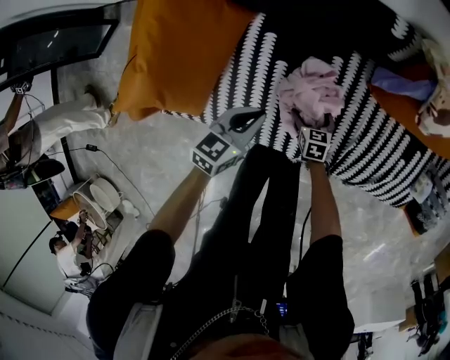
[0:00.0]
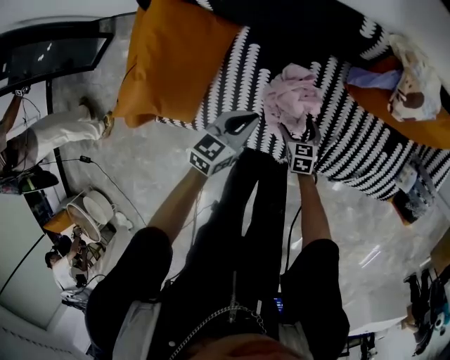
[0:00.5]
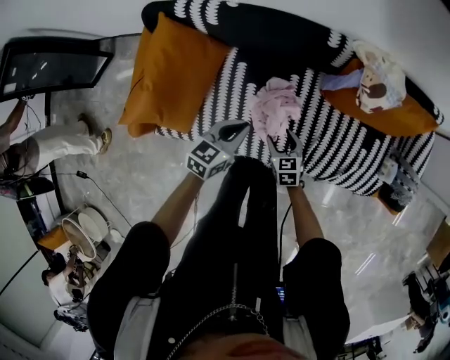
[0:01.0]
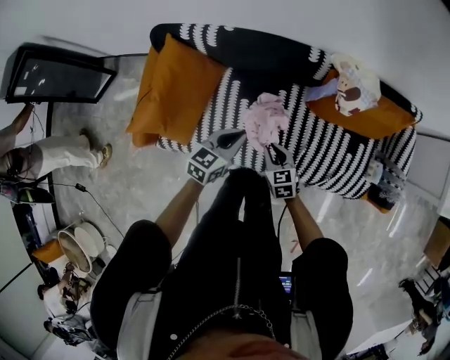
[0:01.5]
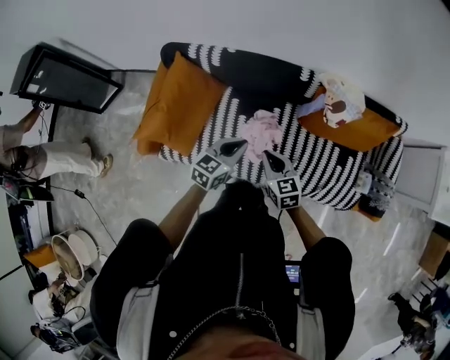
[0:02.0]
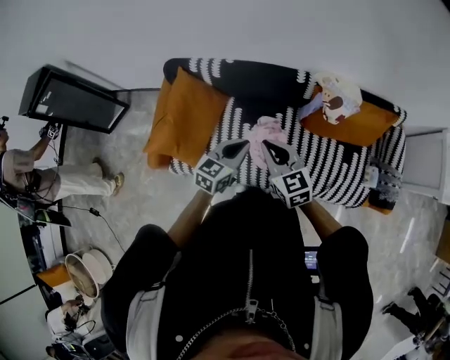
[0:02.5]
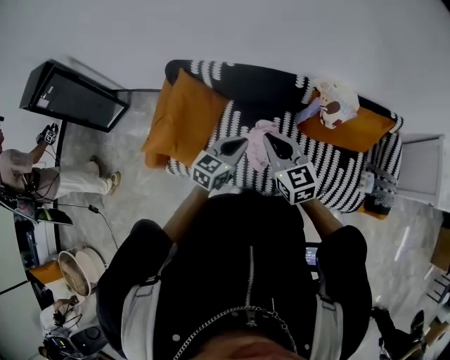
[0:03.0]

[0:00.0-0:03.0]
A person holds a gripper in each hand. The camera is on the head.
0:00.0 to 0:01.5: The left gripper shifts roughly 20 cm upward. Meanwhile the right gripper moves upward, about 30 cm, and closes up.
0:01.5 to 0:03.0: The left gripper heads upward, covering approximately 10 cm, while the right gripper heads upward, covering approximately 30 cm, and swivels approximately 30 degrees.

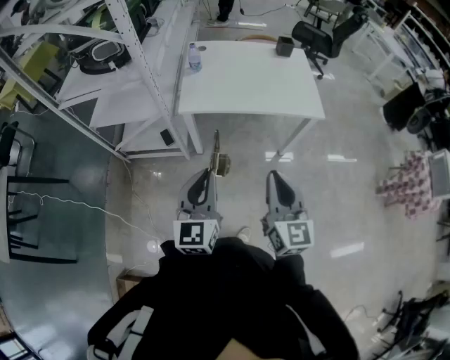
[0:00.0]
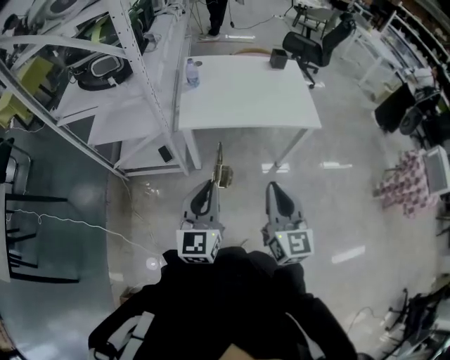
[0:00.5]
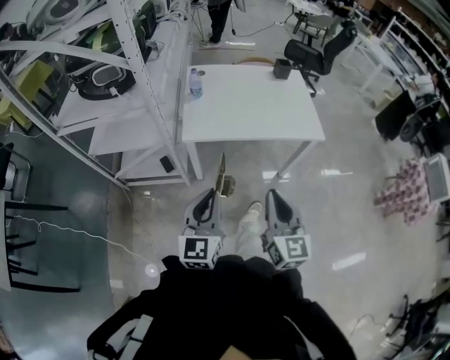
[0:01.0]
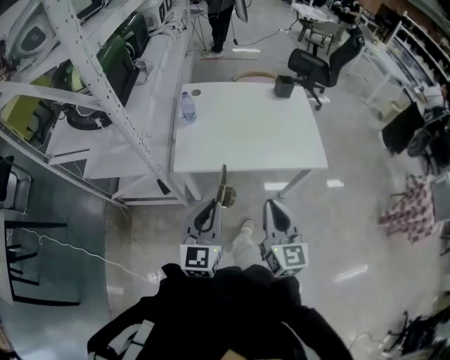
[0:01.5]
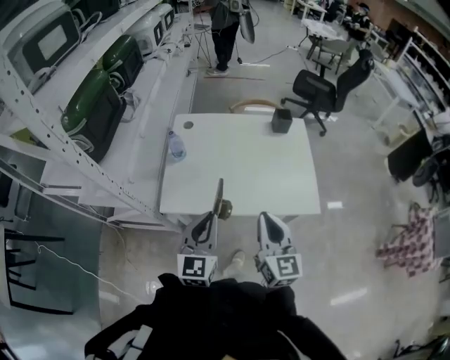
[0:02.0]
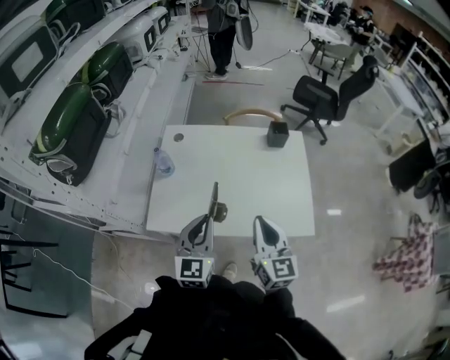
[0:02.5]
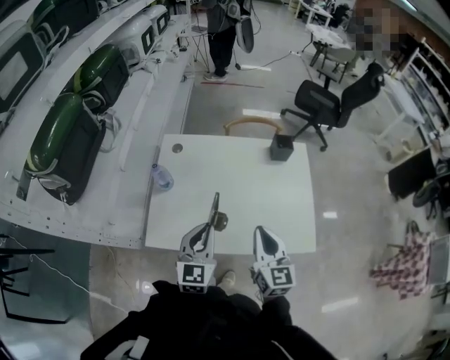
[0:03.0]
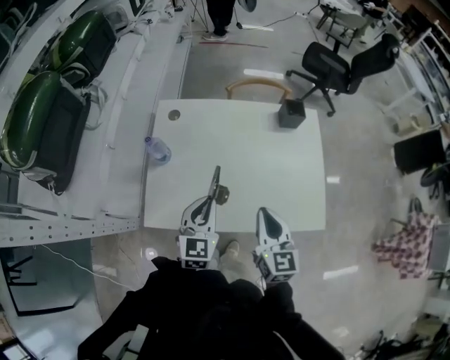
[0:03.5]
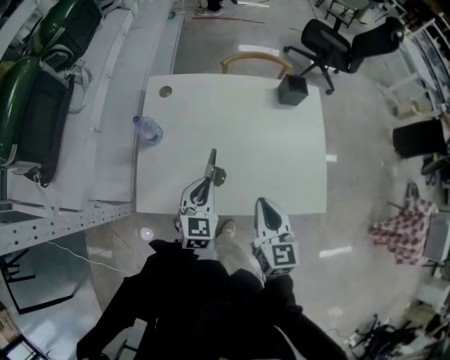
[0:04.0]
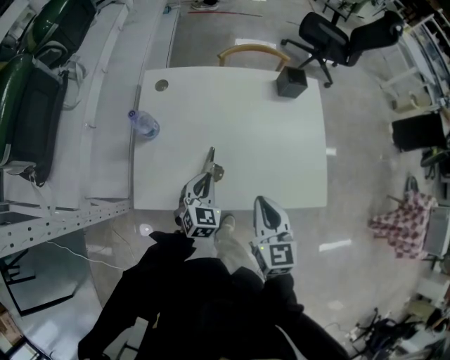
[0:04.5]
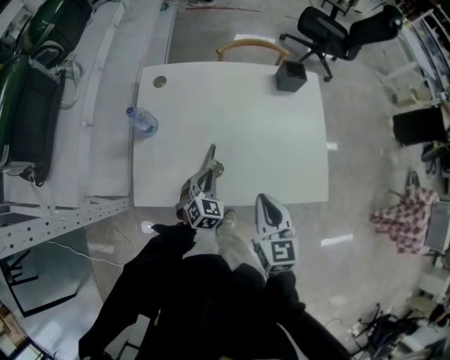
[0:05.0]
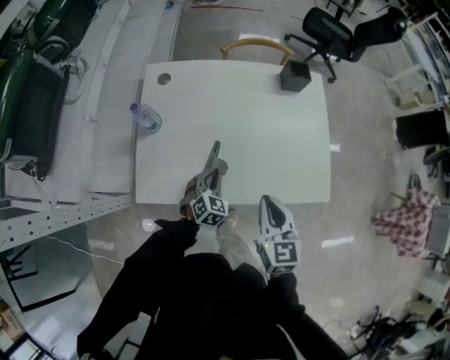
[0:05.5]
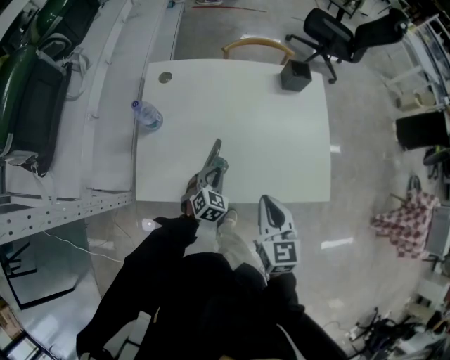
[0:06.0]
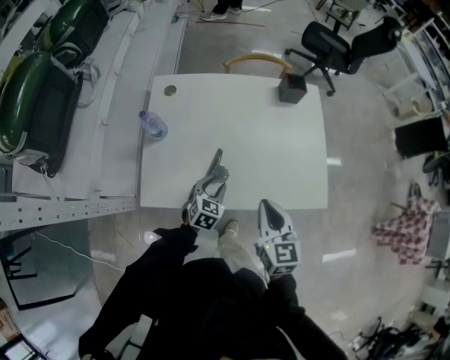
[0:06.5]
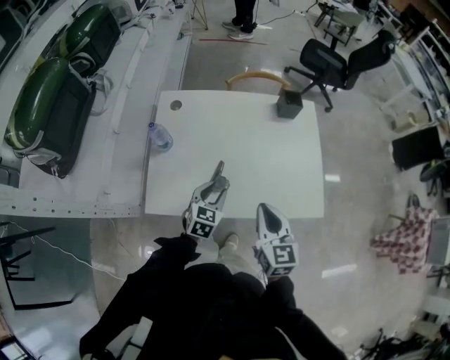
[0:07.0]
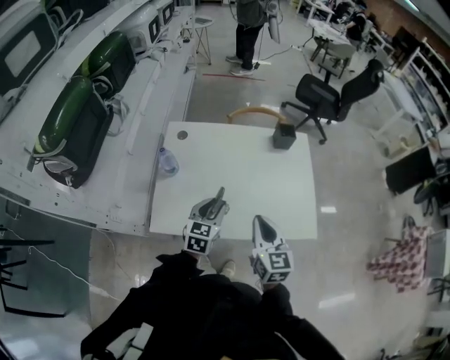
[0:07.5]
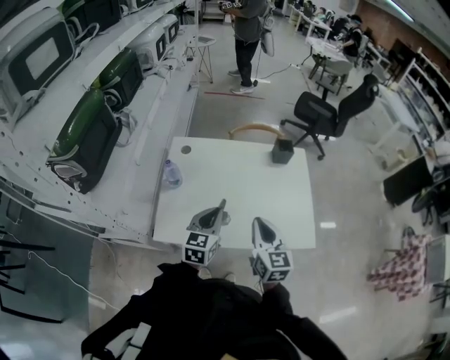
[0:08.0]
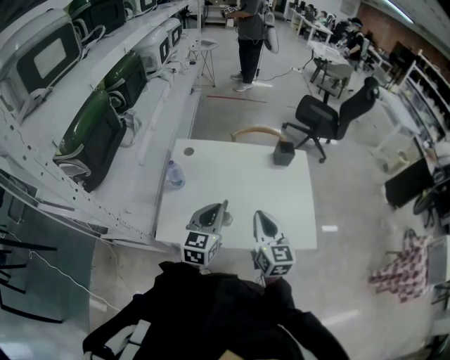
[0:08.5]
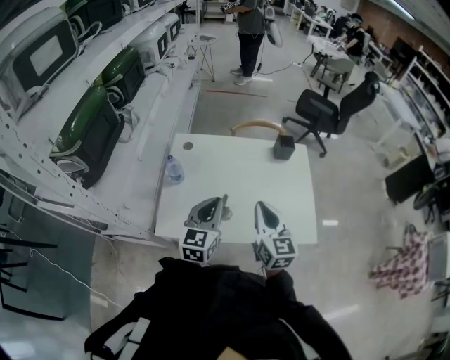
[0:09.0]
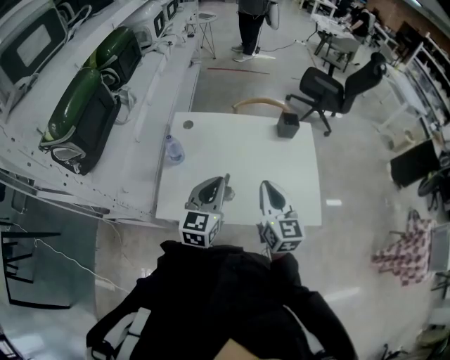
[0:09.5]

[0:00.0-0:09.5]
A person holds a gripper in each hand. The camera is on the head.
0:00.0 to 0:02.0: The two grippers go about 35 cm forward.
0:02.0 to 0:04.0: The grippers both shift forward and downward by roughly 25 cm. The left gripper changes its angle by about 20 degrees.
0:04.0 to 0:05.5: The left gripper travels downward by some 15 cm, and swivels some 20 degrees.
0:05.5 to 0:07.5: The right gripper shifts approximately 10 cm upward, while the left gripper travels upward by roughly 20 cm, swivels approximately 30 degrees, and opens up.
0:07.5 to 0:09.5: The right gripper travels upward by about 5 cm; the left gripper is displaced upward by about 15 cm, and closes.

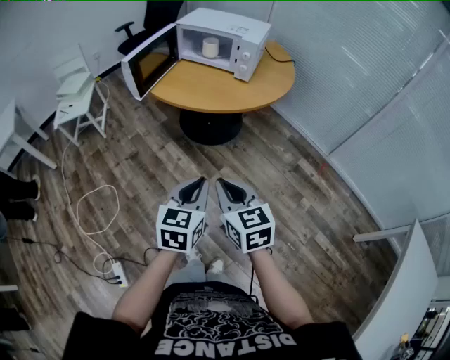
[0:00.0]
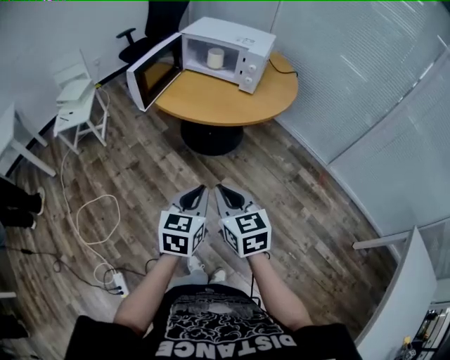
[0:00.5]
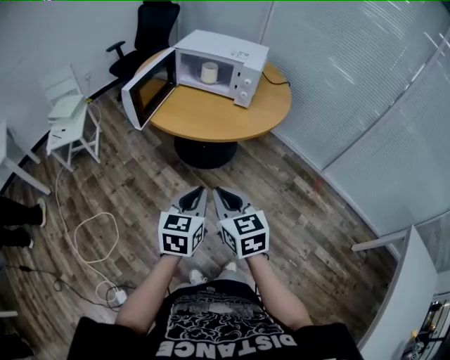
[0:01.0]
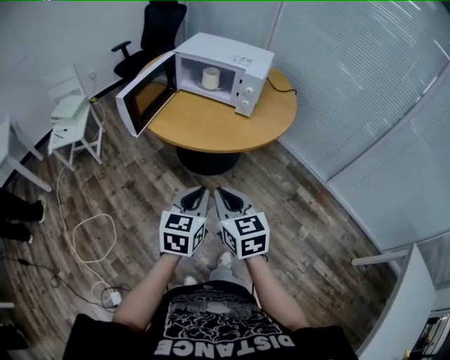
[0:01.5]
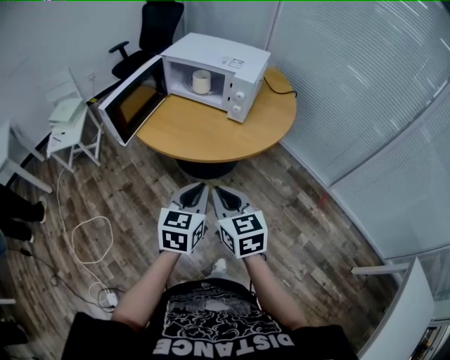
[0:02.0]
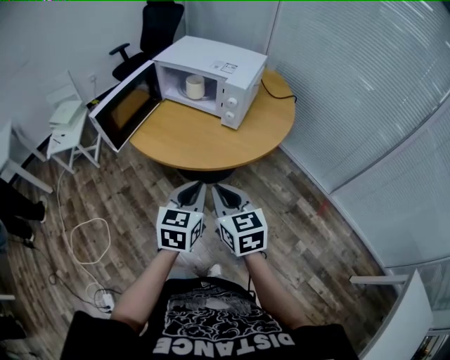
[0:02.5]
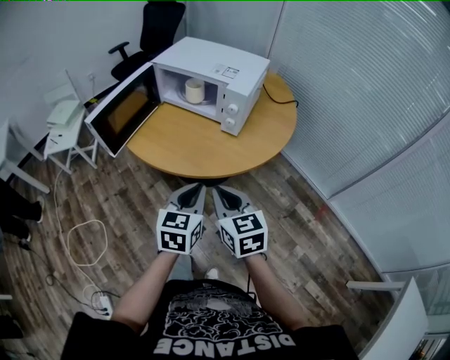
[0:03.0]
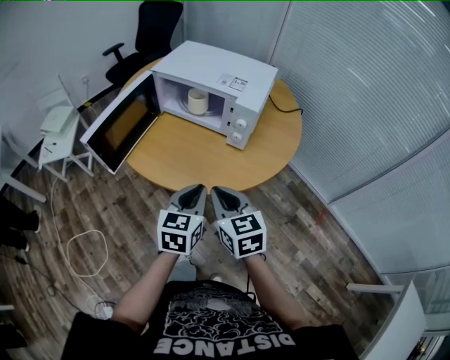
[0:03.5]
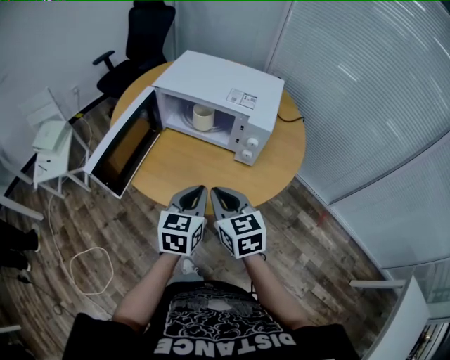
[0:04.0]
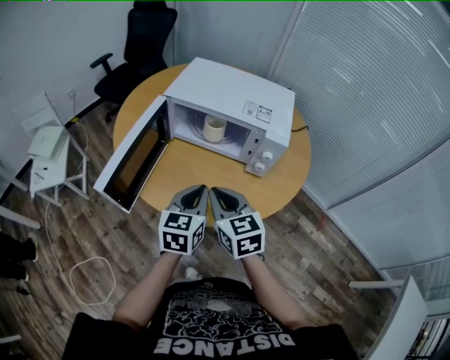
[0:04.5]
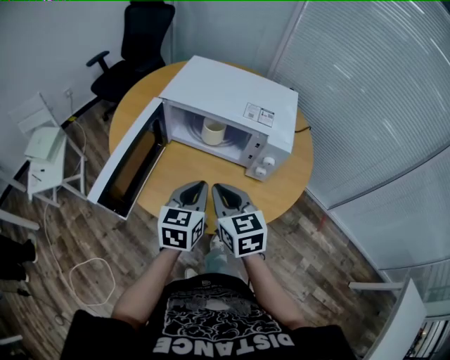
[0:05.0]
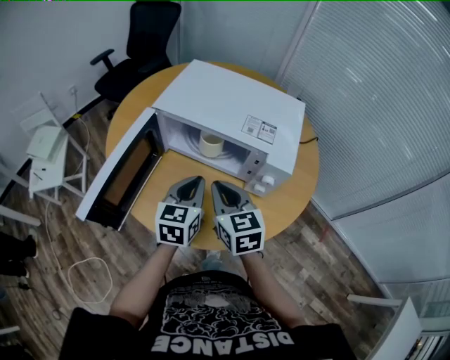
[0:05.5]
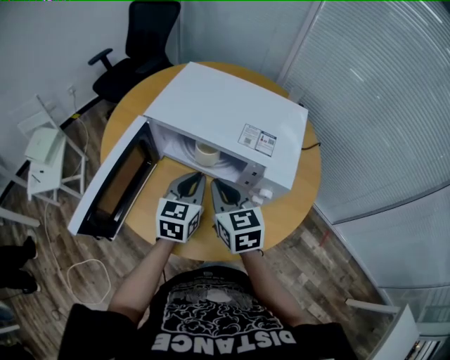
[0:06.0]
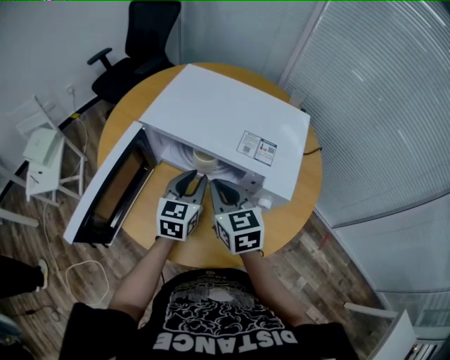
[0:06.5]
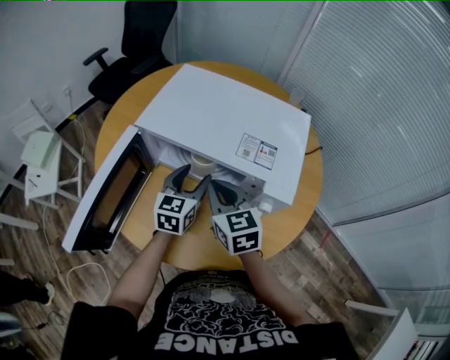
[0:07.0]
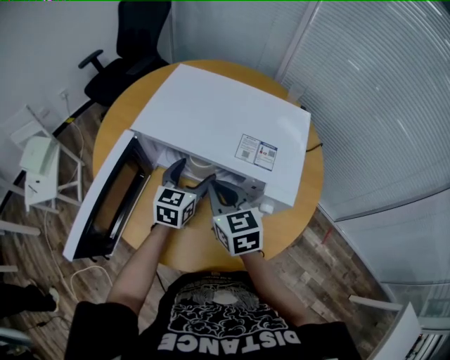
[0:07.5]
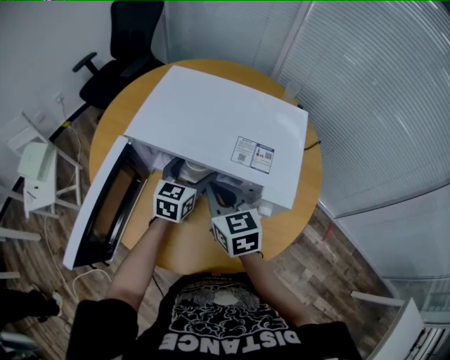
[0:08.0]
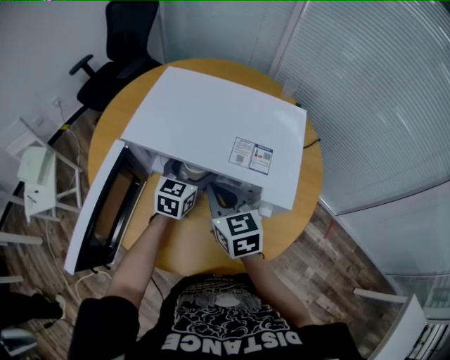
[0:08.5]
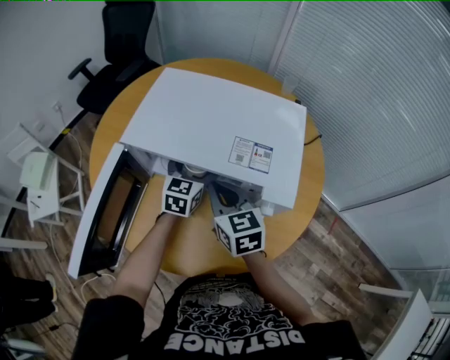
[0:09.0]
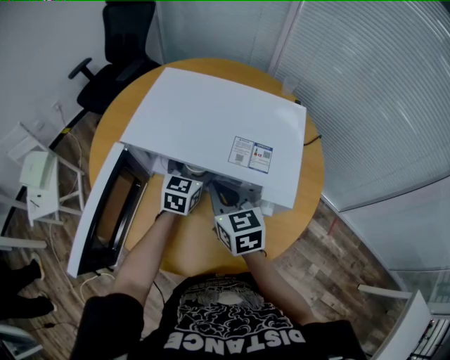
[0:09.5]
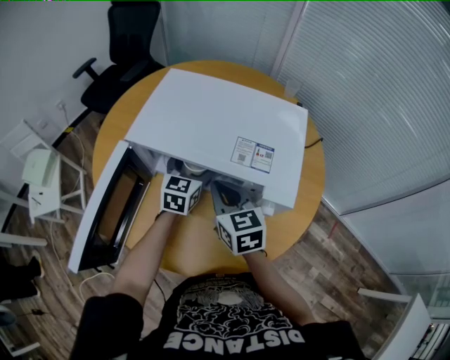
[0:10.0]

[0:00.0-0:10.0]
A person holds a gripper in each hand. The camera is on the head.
0:00.0 to 0:02.0: The grippers both shift forward by roughly 20 cm.
0:02.0 to 0:04.0: Both grippers move forward, some 25 cm.
0:04.0 to 0:06.0: The grippers both shift forward by about 20 cm.
0:06.0 to 0:08.0: The left gripper goes some 10 cm forward, and opens its fingers, while the right gripper travels forward by some 5 cm.
0:08.0 to 0:10.0: The grippers stay close to where they were, moving slightly.

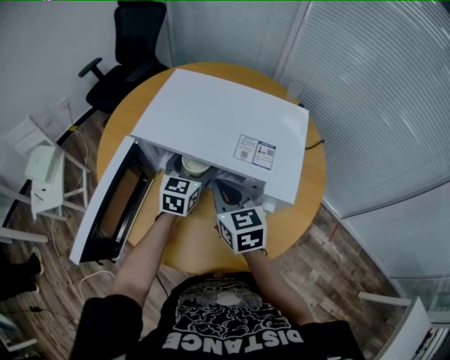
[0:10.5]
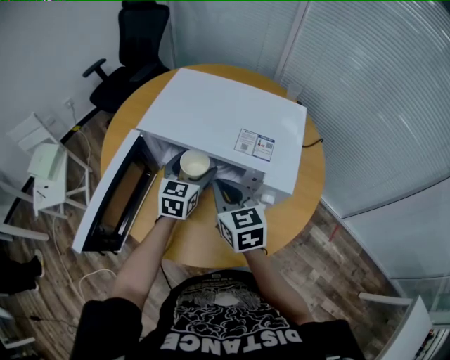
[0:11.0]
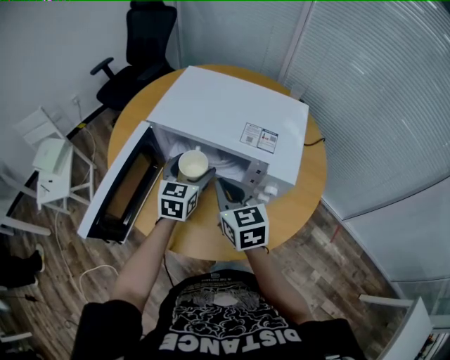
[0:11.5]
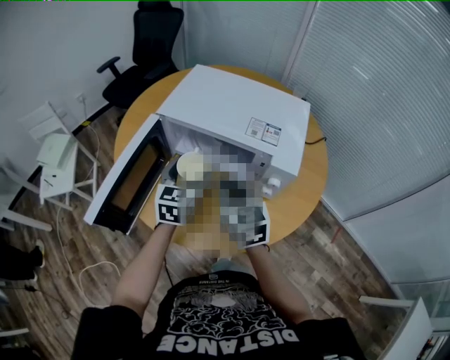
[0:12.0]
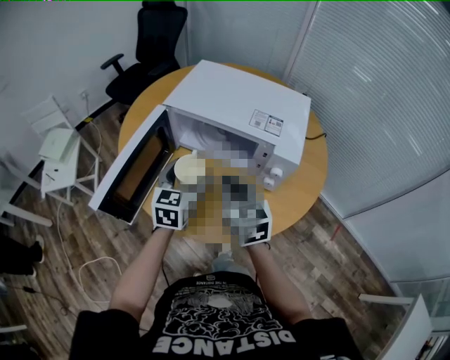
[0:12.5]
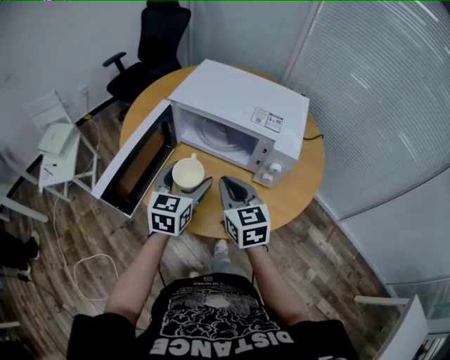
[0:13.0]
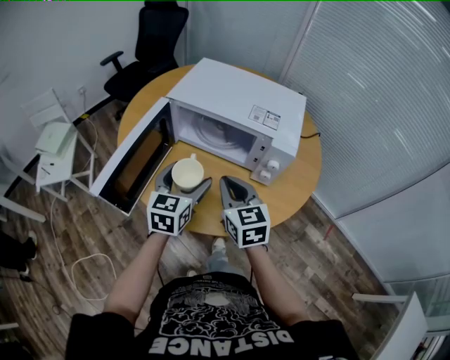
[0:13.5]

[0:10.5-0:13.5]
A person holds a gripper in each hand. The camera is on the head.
0:10.5 to 0:12.0: The left gripper goes roughly 15 cm backward and to the left; the right gripper heads backward, covering about 10 cm.
0:12.0 to 0:13.5: The right gripper heads backward, covering approximately 5 cm, while the left gripper moves backward, some 10 cm.
